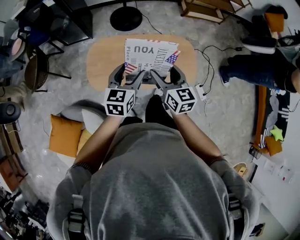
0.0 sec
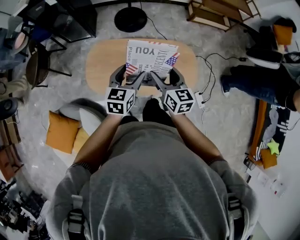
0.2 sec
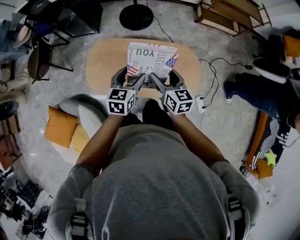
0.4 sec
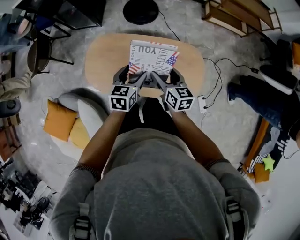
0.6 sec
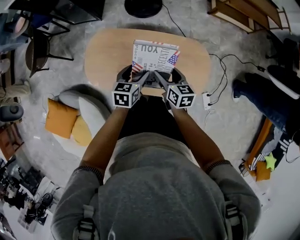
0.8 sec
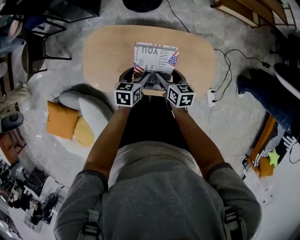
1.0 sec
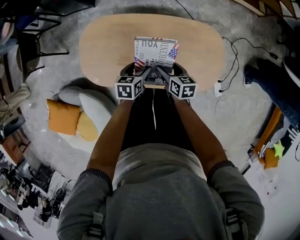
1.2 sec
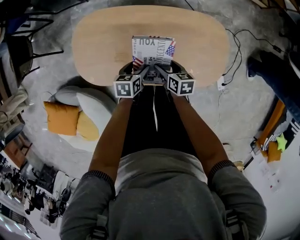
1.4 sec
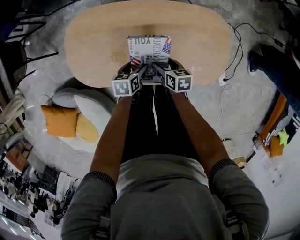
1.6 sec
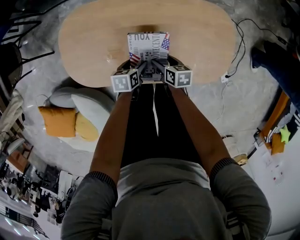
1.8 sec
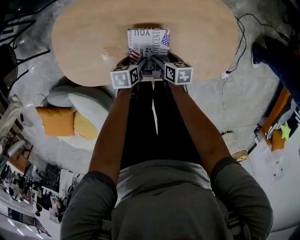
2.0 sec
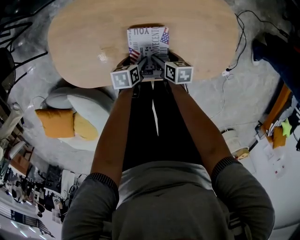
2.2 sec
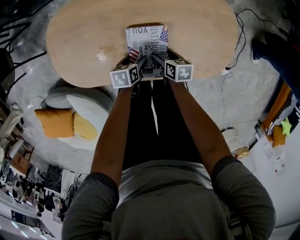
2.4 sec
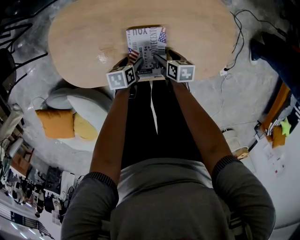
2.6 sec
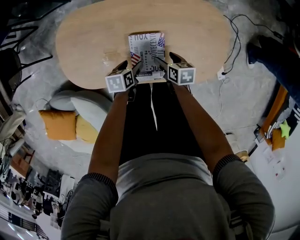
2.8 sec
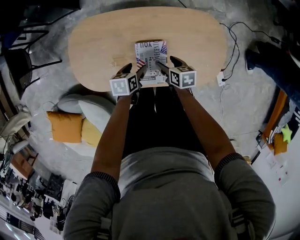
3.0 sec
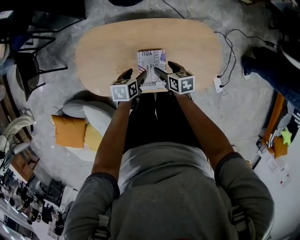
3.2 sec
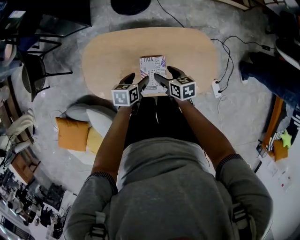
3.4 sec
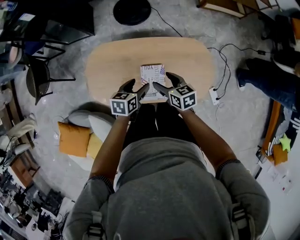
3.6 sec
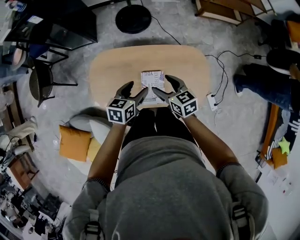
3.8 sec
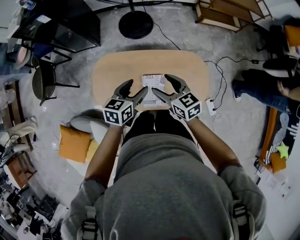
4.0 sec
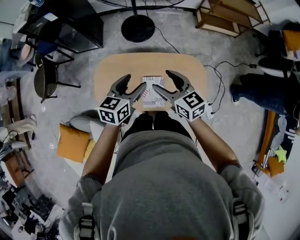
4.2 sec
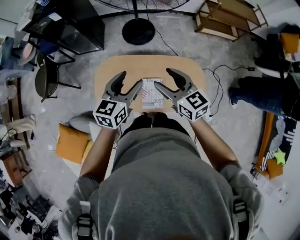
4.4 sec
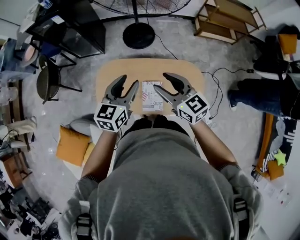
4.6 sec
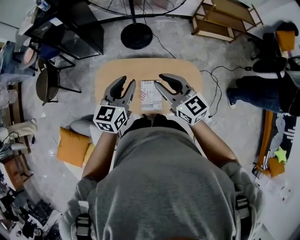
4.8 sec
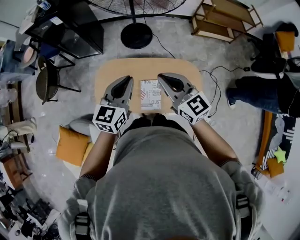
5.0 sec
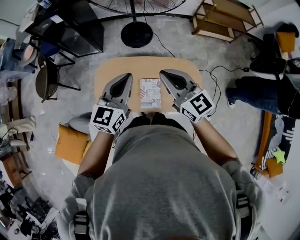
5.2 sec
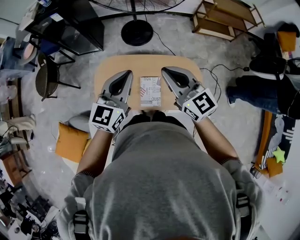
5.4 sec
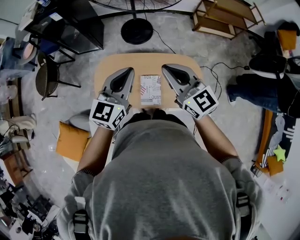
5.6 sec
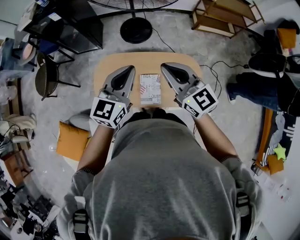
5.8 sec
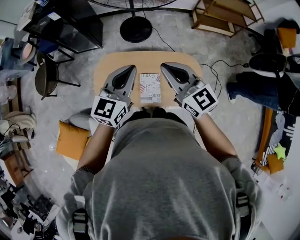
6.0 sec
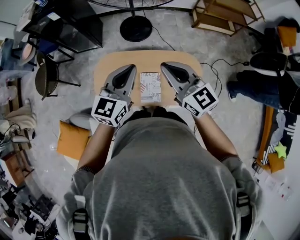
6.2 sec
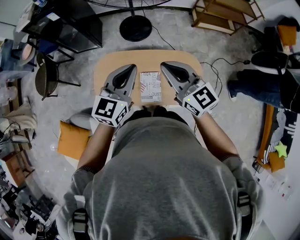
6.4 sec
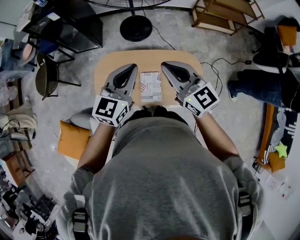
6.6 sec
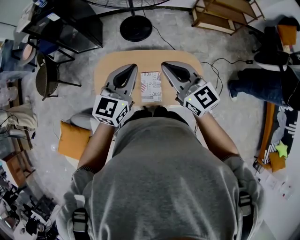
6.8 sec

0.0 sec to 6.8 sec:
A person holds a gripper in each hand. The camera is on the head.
0.0 sec to 1.4 sec: Both grippers travel together downward, some 40 cm. The right gripper swivels roughly 40 degrees. The left gripper tilts its fingers about 30 degrees downward.
1.4 sec to 2.8 sec: The two grippers go roughly 10 cm downward.
2.8 sec to 4.0 sec: The two grippers go roughly 40 cm upward. The right gripper turns by some 40 degrees. The left gripper turns by about 40 degrees.
4.0 sec to 5.4 sec: Both grippers move upward, about 20 cm. The left gripper turns by some 30 degrees, and closes, while the right gripper rotates about 30 degrees, and closes.
5.4 sec to 6.8 sec: The grippers make only small movements.

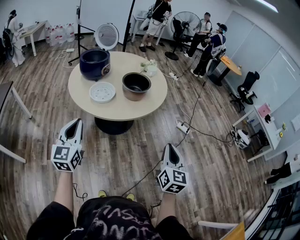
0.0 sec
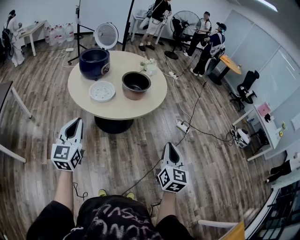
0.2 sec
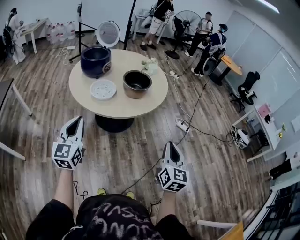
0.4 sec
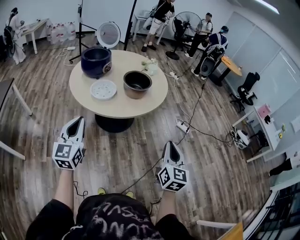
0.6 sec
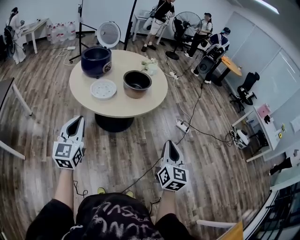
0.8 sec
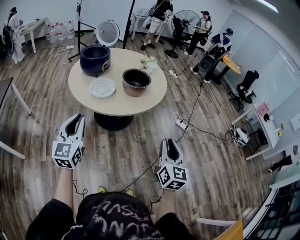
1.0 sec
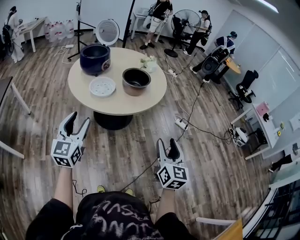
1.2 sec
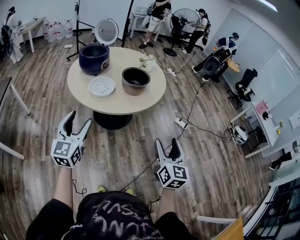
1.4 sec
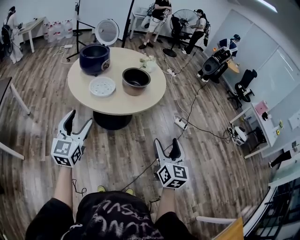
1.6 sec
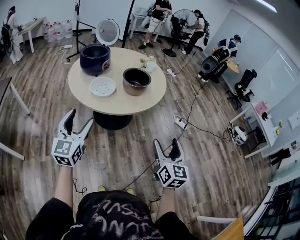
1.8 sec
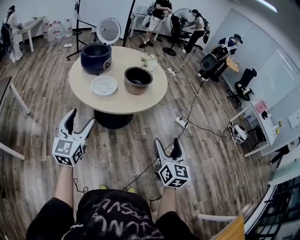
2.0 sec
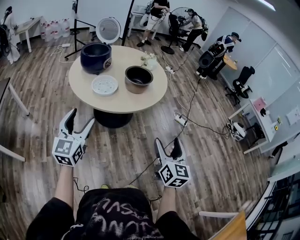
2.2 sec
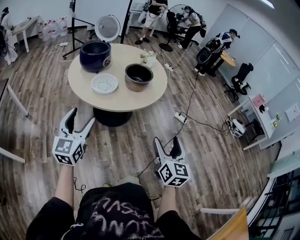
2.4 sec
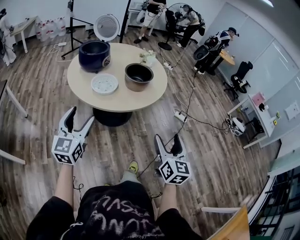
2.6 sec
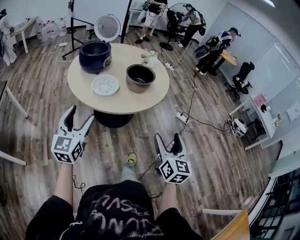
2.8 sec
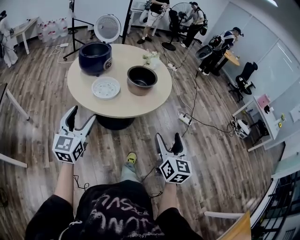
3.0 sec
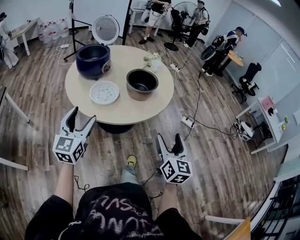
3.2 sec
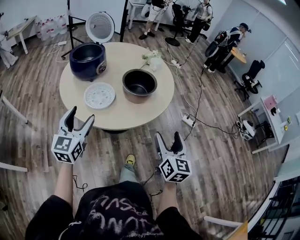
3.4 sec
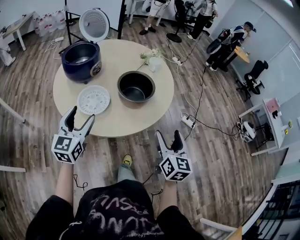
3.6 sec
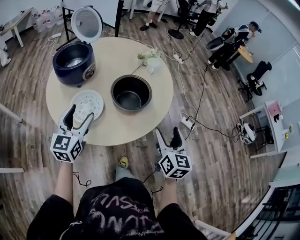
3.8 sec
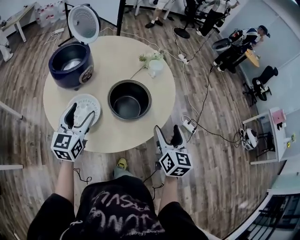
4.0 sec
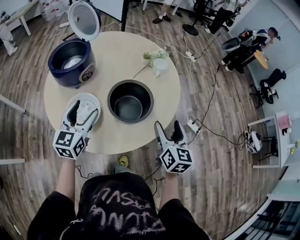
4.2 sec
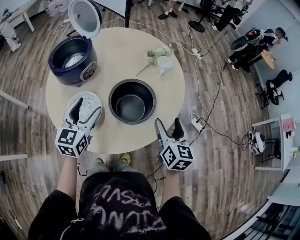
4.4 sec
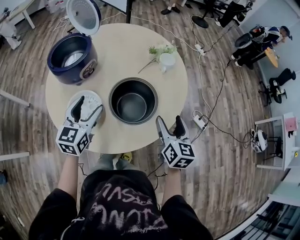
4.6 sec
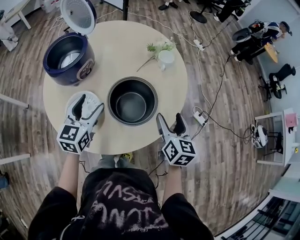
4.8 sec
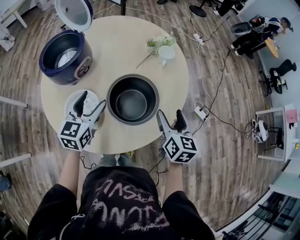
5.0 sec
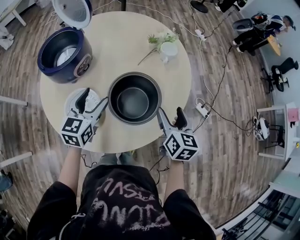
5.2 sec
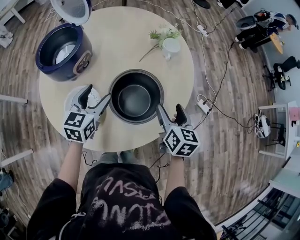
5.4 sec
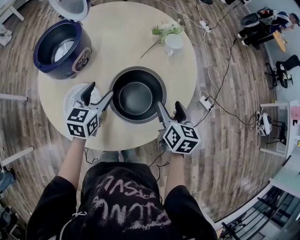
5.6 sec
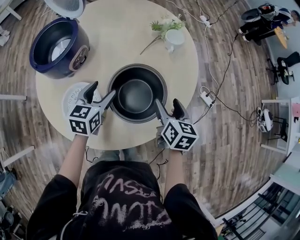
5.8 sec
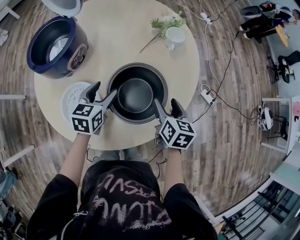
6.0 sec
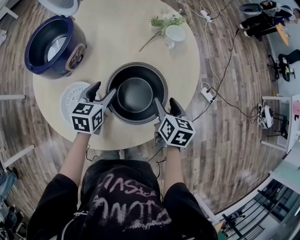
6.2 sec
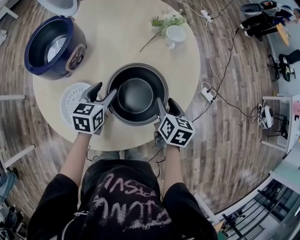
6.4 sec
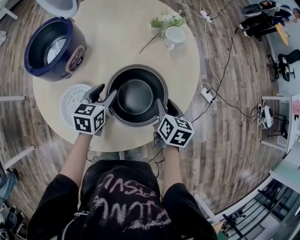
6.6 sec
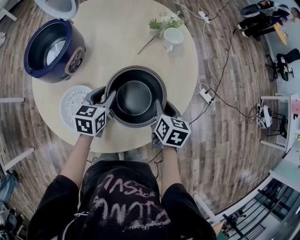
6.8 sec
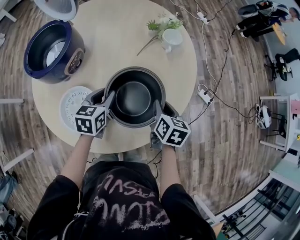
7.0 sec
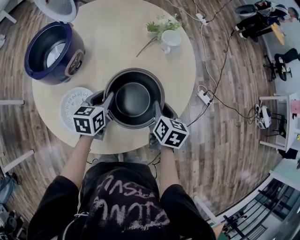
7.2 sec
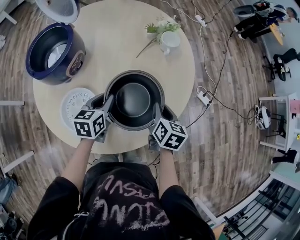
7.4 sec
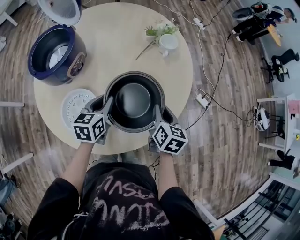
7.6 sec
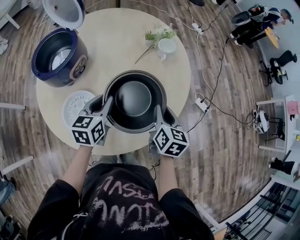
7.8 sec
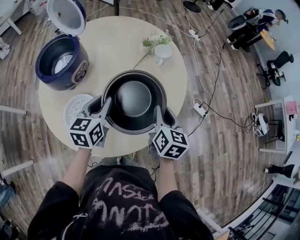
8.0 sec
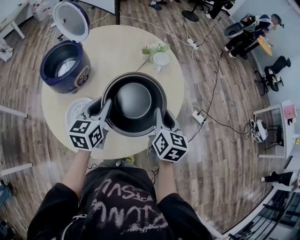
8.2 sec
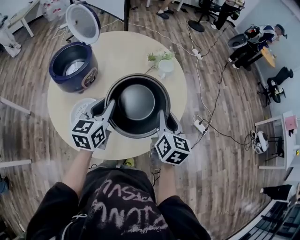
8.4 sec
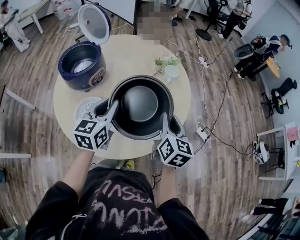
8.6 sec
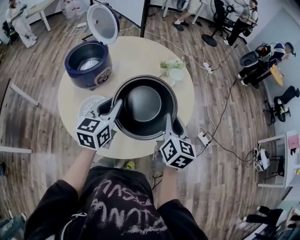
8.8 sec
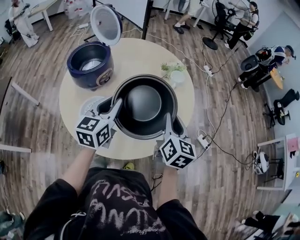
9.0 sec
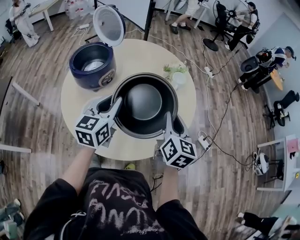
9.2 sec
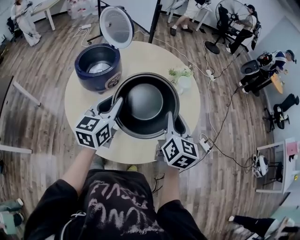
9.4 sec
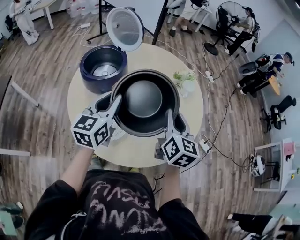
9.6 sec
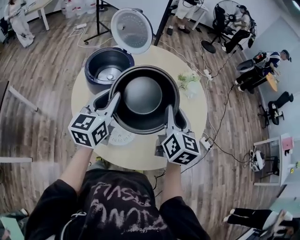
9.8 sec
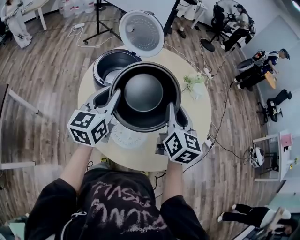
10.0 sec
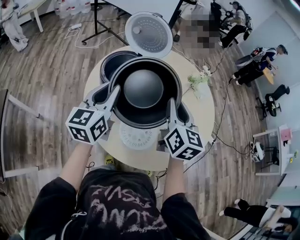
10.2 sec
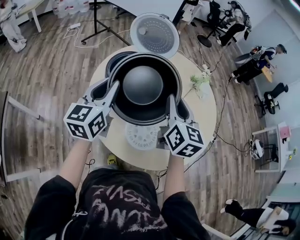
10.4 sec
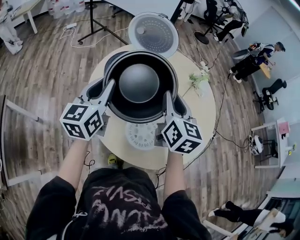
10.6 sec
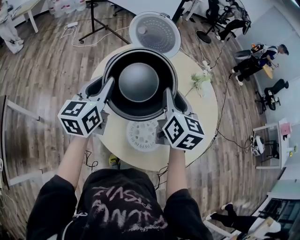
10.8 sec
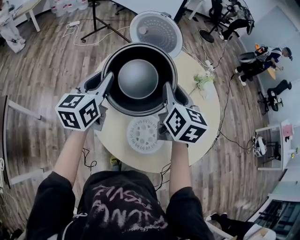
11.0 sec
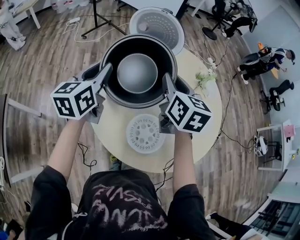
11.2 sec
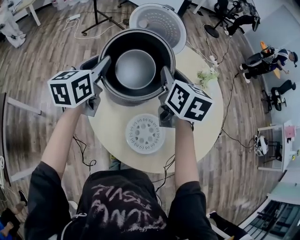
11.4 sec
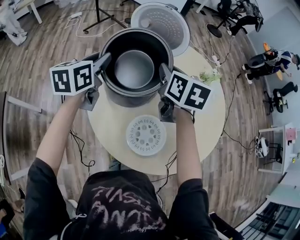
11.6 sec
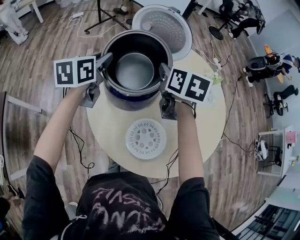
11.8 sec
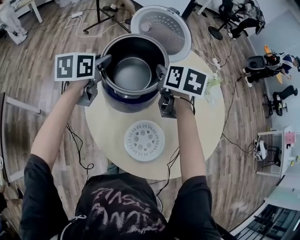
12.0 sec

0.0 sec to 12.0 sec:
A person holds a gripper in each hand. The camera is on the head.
0.0 sec to 1.6 sec: The right gripper opens up. Meanwhile the left gripper opens its fingers.
1.6 sec to 3.0 sec: The right gripper shifts roughly 10 cm to the left and forward; the left gripper heads forward and to the left, covering about 10 cm.
3.0 sec to 4.4 sec: The two grippers go approximately 40 cm forward.
4.4 sec to 6.0 sec: The grippers both shift downward and forward by approximately 15 cm. The left gripper rotates roughly 20 degrees, while the right gripper swivels some 20 degrees.
6.0 sec to 7.6 sec: The right gripper closes, while the left gripper closes up.
7.6 sec to 9.0 sec: The two grippers go some 15 cm upward. The left gripper changes its angle by roughly 20 degrees; the right gripper swivels roughly 20 degrees.
9.0 sec to 10.4 sec: Both grippers move to the left, about 35 cm.
10.4 sec to 12.0 sec: The left gripper shifts some 20 cm forward and downward, and turns by approximately 30 degrees, while the right gripper travels forward by approximately 20 cm, and angles its fingers downward, by roughly 30 degrees.

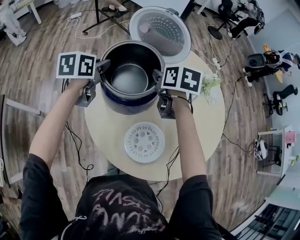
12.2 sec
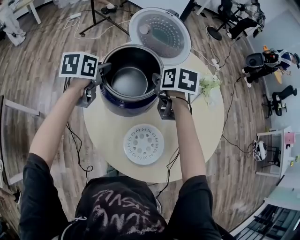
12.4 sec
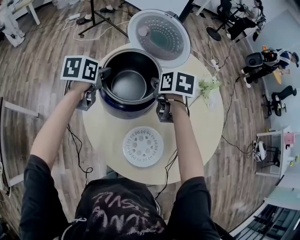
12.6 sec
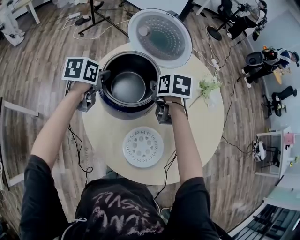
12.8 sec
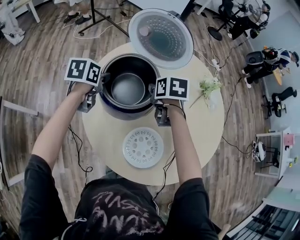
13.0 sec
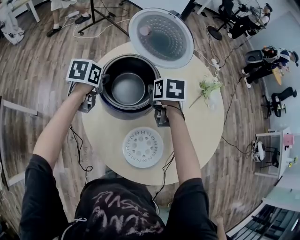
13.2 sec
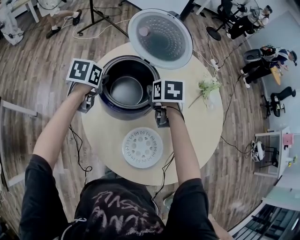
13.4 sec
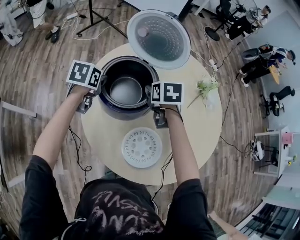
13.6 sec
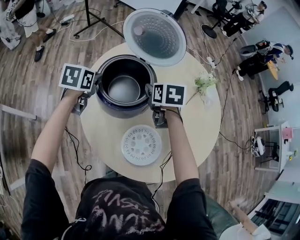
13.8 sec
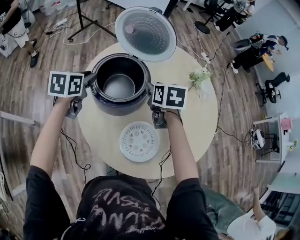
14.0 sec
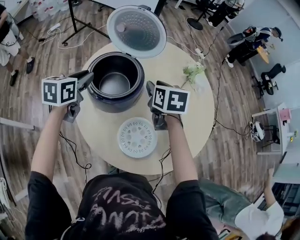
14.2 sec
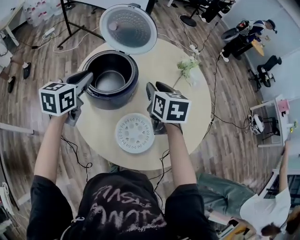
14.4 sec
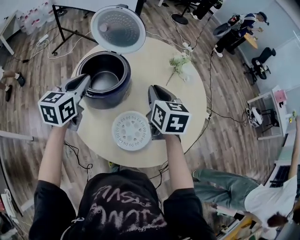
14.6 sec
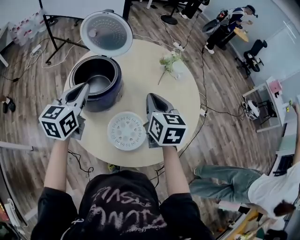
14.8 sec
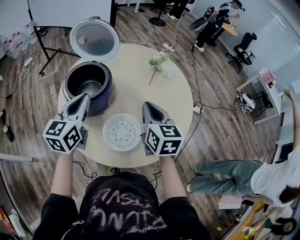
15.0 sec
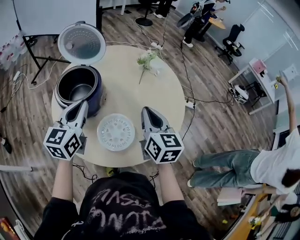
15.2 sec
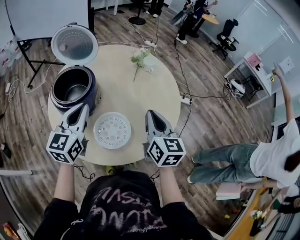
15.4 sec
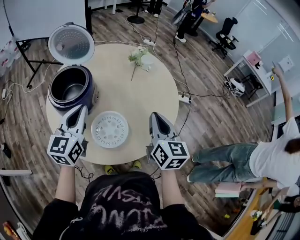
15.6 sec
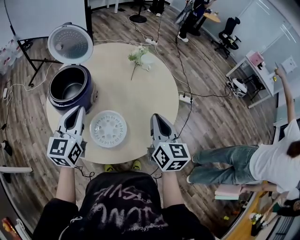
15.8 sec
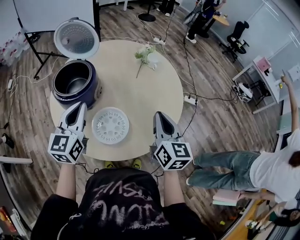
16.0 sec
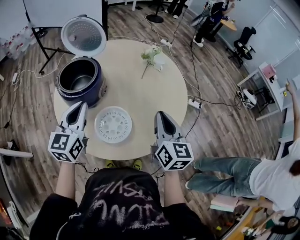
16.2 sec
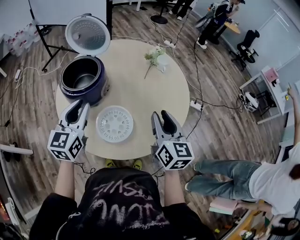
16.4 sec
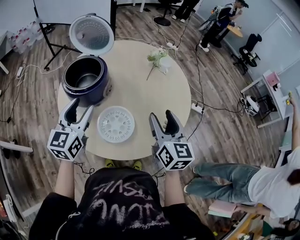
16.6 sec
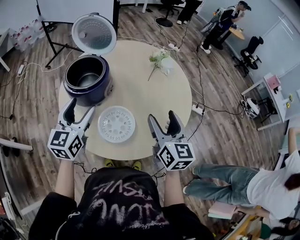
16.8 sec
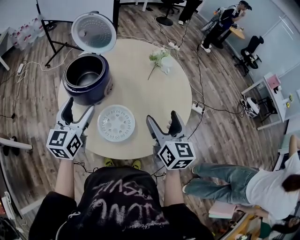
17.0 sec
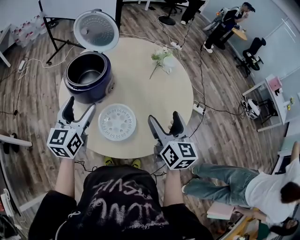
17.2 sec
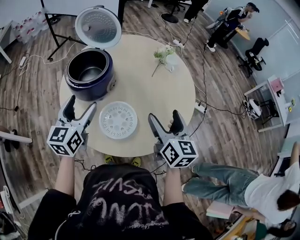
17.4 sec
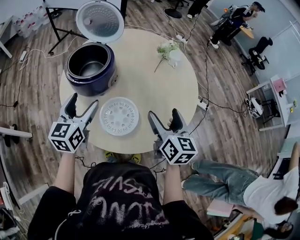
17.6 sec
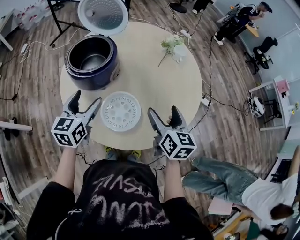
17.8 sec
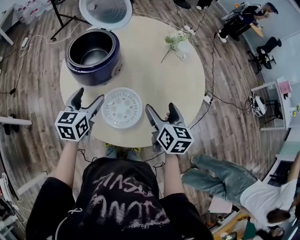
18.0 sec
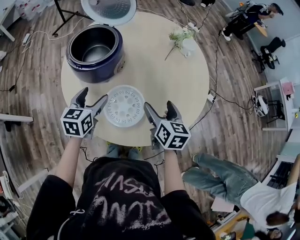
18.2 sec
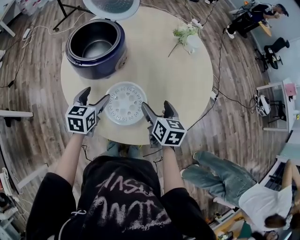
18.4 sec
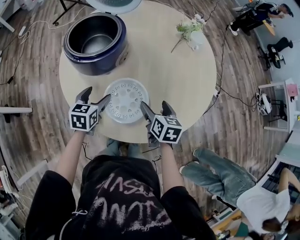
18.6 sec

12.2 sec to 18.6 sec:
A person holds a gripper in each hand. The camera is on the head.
12.2 sec to 13.8 sec: Both grippers travel together downward, roughly 5 cm.
13.8 sec to 15.4 sec: The left gripper is displaced to the right, backward and upward by some 30 cm, and tips its fingers upward by approximately 40 degrees; the right gripper moves backward, to the right and upward, about 40 cm, angles its fingers upward, by approximately 40 degrees, and closes.
15.4 sec to 17.0 sec: The right gripper opens, while the left gripper opens.
17.0 sec to 18.6 sec: The two grippers go about 25 cm downward. The right gripper angles its fingers downward, by about 30 degrees; the left gripper tips its fingers downward by approximately 30 degrees.
